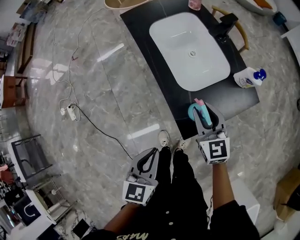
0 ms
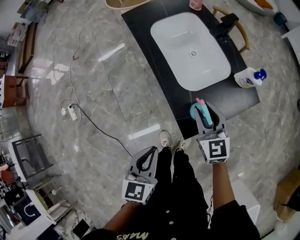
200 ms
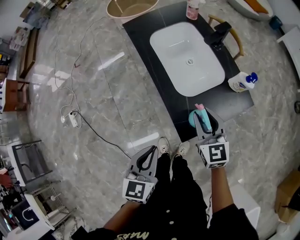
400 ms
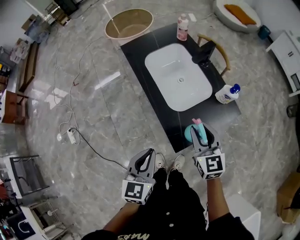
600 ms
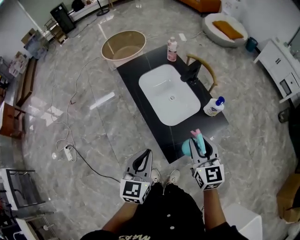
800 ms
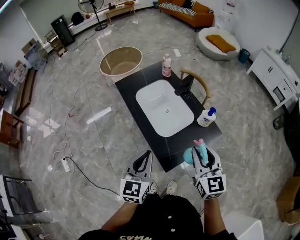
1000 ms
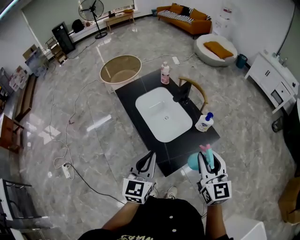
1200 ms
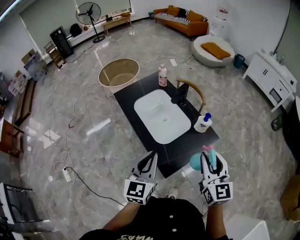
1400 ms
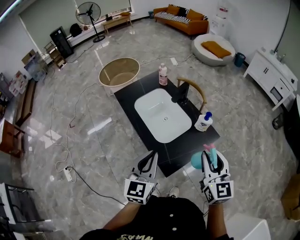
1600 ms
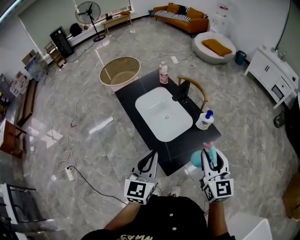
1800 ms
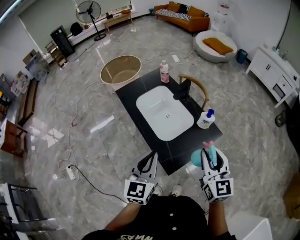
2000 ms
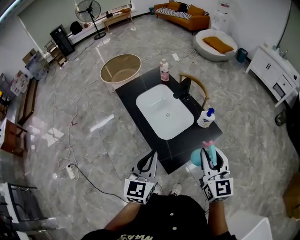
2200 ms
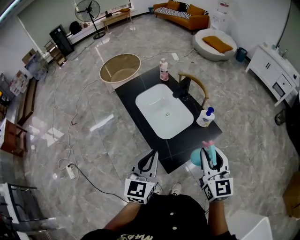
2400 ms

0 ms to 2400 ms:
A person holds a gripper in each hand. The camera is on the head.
0 ms to 1200 ms: The right gripper goes roughly 25 cm upward and to the right, and rotates some 20 degrees; the left gripper travels upward and forward by roughly 20 cm, and turns by approximately 30 degrees.
1200 ms to 2400 ms: There are only small adjustments of the grippers.

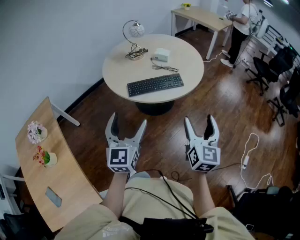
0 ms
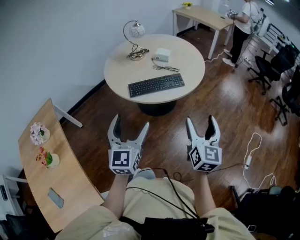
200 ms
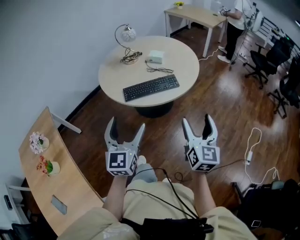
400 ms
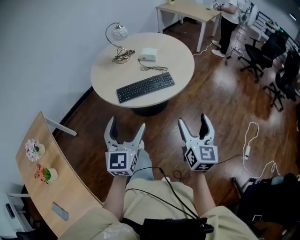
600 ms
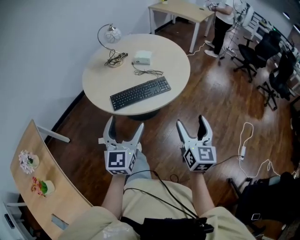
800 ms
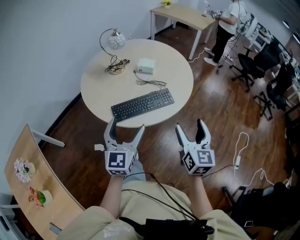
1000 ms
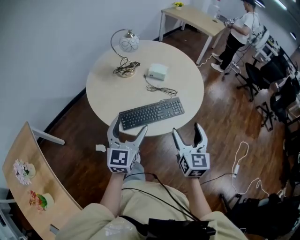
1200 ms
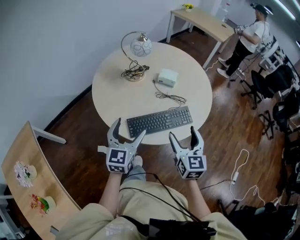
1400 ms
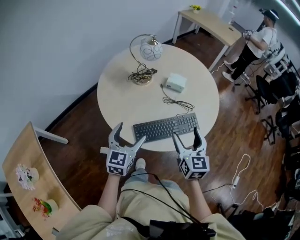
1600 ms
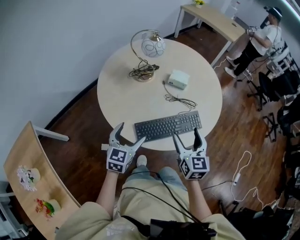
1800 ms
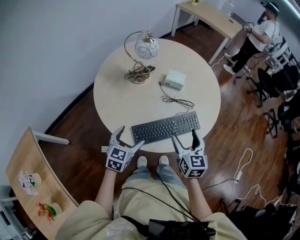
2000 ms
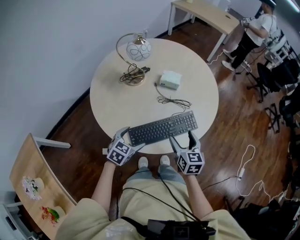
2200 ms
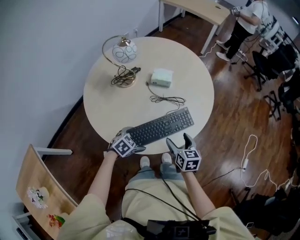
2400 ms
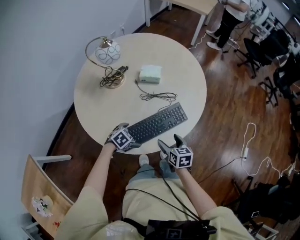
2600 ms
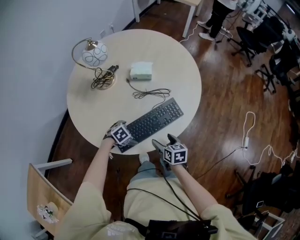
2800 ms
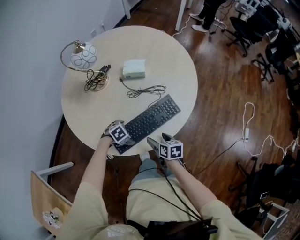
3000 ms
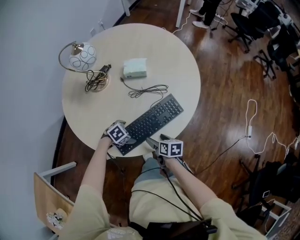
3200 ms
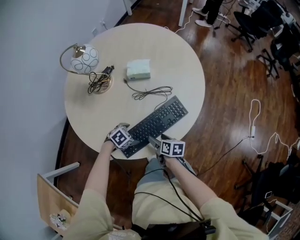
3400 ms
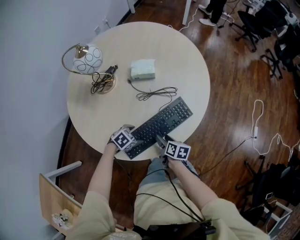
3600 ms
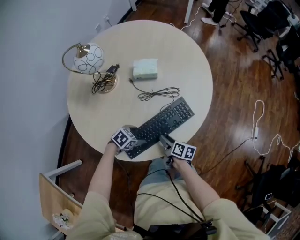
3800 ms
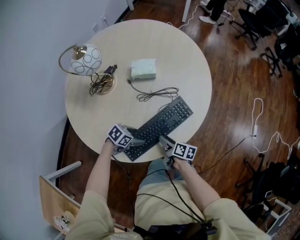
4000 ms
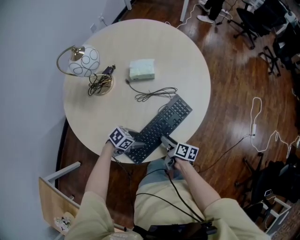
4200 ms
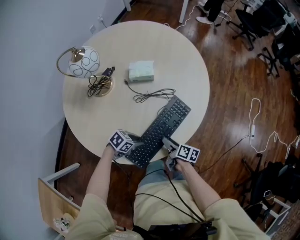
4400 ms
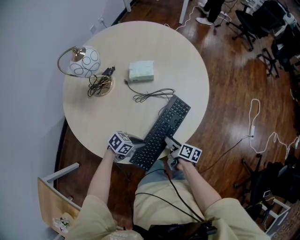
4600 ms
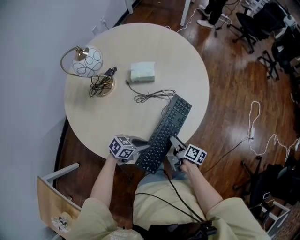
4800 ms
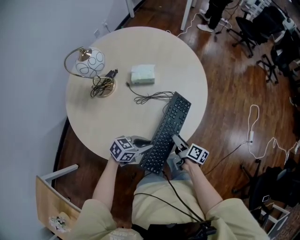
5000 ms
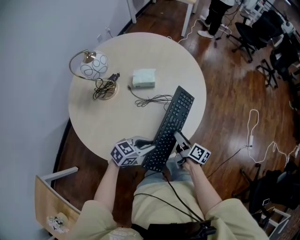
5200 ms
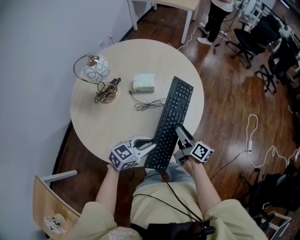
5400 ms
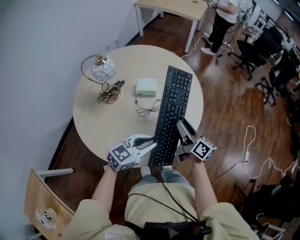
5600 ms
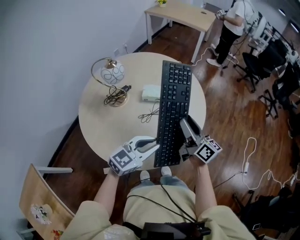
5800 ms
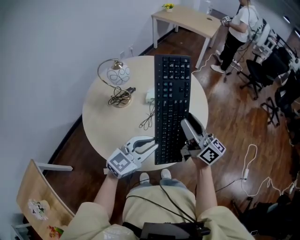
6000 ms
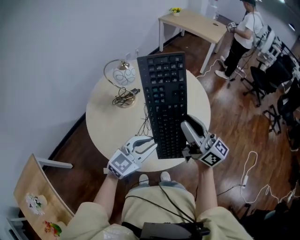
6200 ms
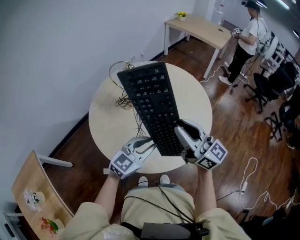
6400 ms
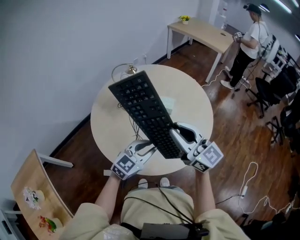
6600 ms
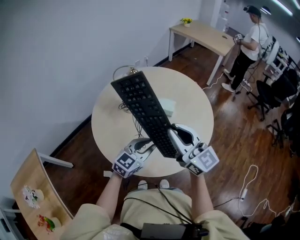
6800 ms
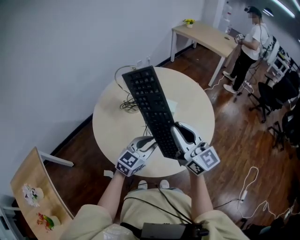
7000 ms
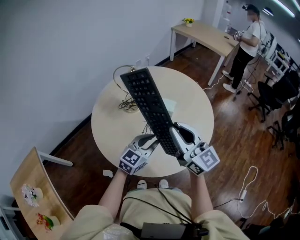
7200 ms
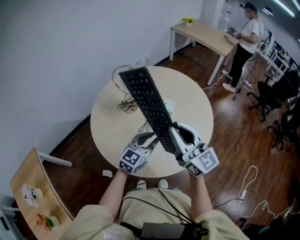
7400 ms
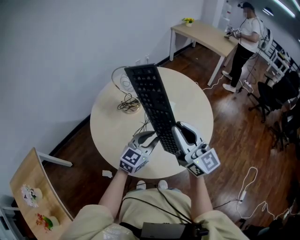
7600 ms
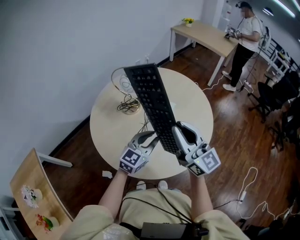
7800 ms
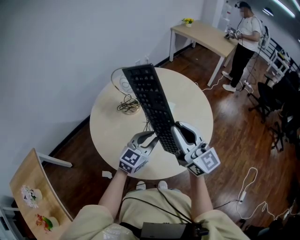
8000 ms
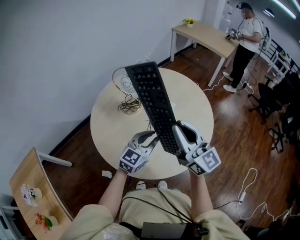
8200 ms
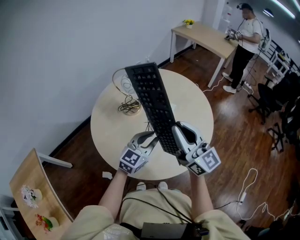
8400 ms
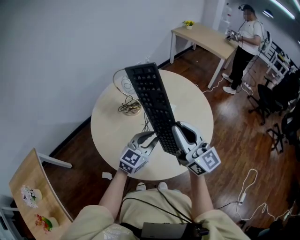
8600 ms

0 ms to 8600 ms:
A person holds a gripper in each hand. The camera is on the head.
0 ms to 1400 ms: The right gripper moves forward and to the left, roughly 35 cm, while the left gripper moves forward, approximately 35 cm.
1400 ms to 2800 ms: Both grippers move downward, some 30 cm. The left gripper points its fingers roughly 60 degrees further downward, while the right gripper changes its angle by roughly 40 degrees.
2800 ms to 4400 ms: The left gripper swivels roughly 30 degrees, and closes its fingers. The right gripper moves downward, some 5 cm, turns by about 40 degrees, and closes up.
4400 ms to 5800 ms: The two grippers go some 30 cm upward. The left gripper tips its fingers upward by roughly 30 degrees, while the right gripper points its fingers about 40 degrees further upward.
5800 ms to 7200 ms: The right gripper travels upward and to the left by about 15 cm, and swivels approximately 40 degrees. Meanwhile the left gripper heads forward, covering approximately 5 cm, and turns by roughly 30 degrees.
7200 ms to 8600 ms: The grippers make only small movements.

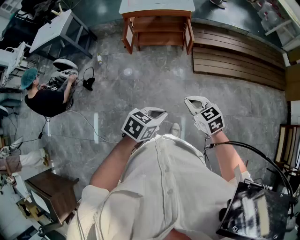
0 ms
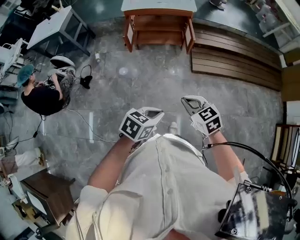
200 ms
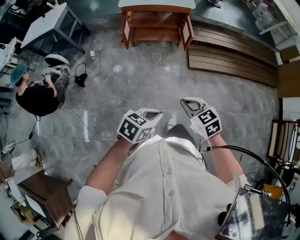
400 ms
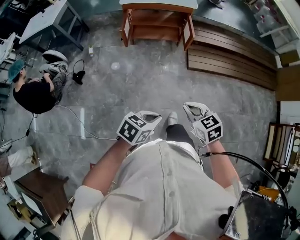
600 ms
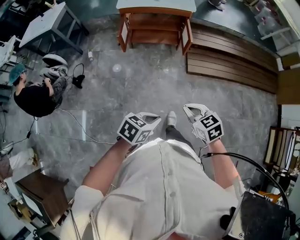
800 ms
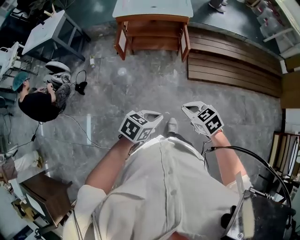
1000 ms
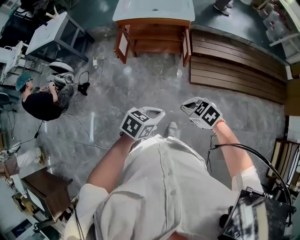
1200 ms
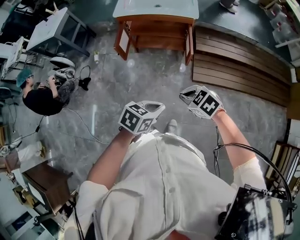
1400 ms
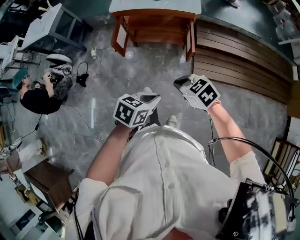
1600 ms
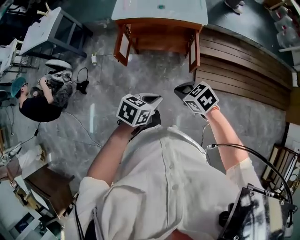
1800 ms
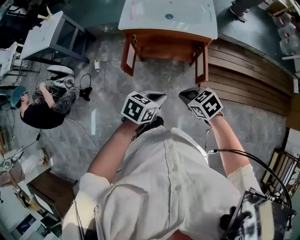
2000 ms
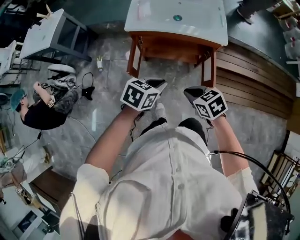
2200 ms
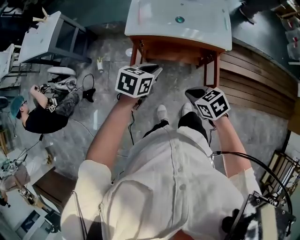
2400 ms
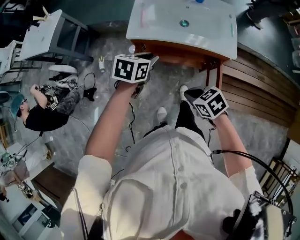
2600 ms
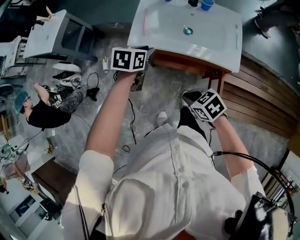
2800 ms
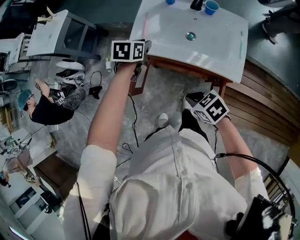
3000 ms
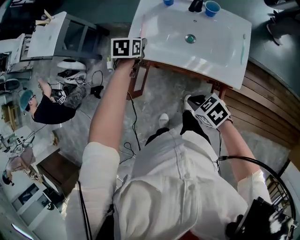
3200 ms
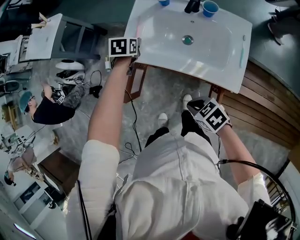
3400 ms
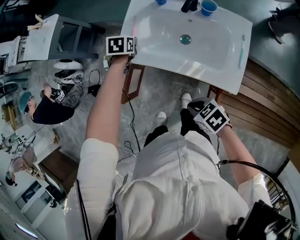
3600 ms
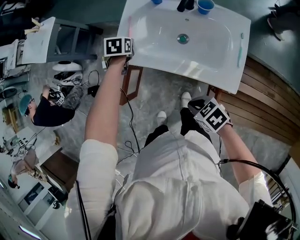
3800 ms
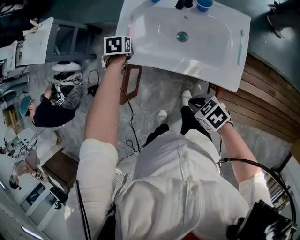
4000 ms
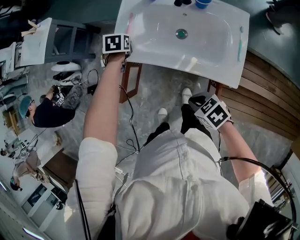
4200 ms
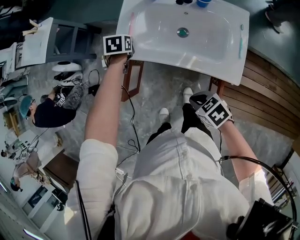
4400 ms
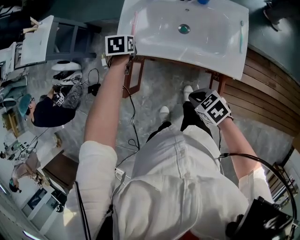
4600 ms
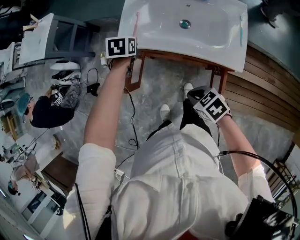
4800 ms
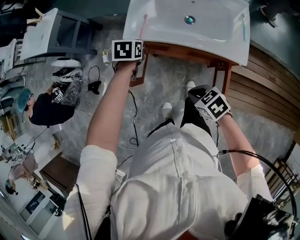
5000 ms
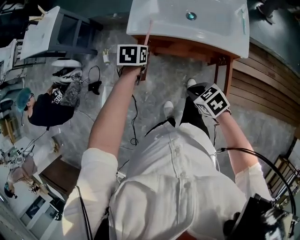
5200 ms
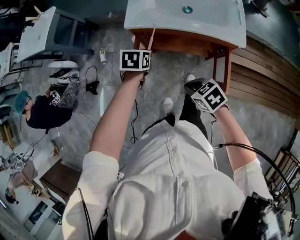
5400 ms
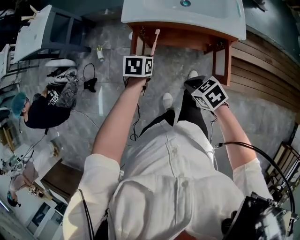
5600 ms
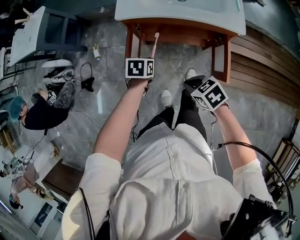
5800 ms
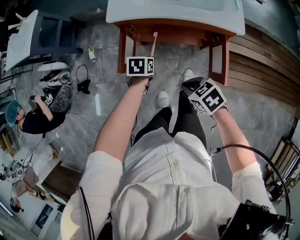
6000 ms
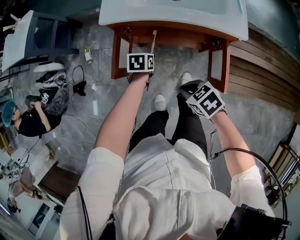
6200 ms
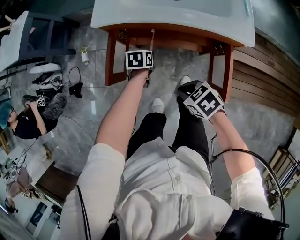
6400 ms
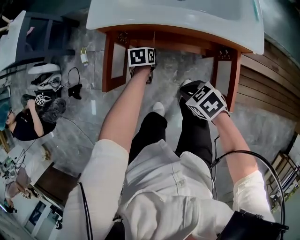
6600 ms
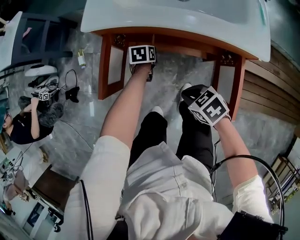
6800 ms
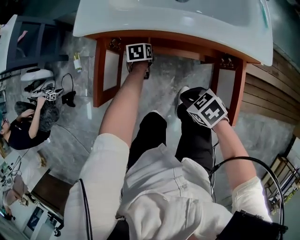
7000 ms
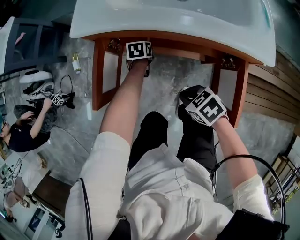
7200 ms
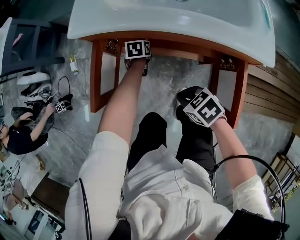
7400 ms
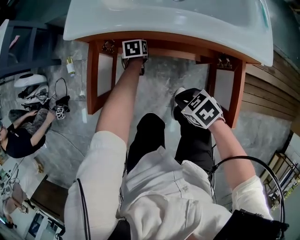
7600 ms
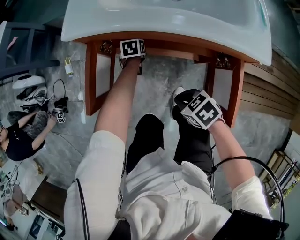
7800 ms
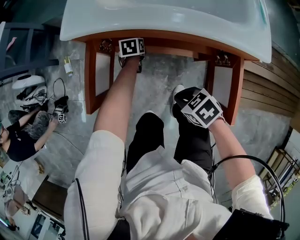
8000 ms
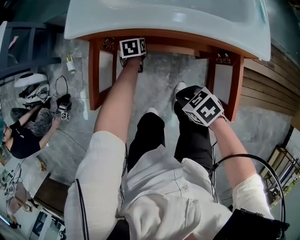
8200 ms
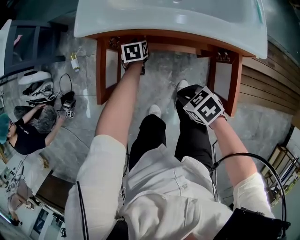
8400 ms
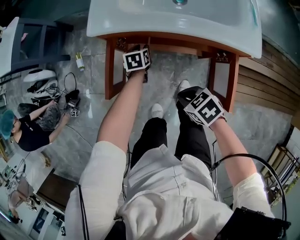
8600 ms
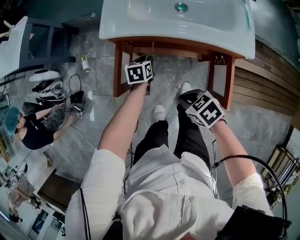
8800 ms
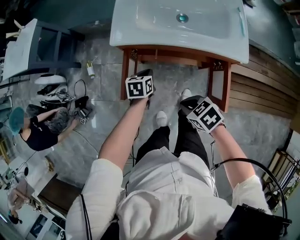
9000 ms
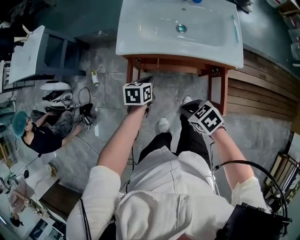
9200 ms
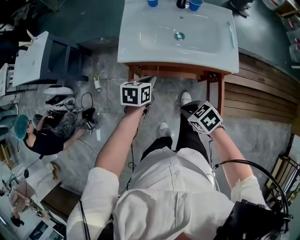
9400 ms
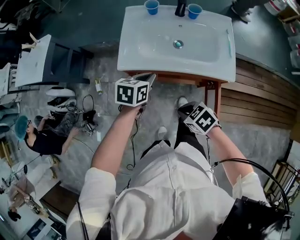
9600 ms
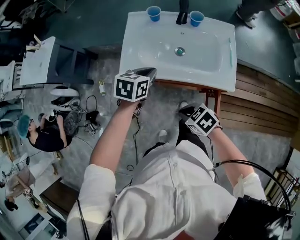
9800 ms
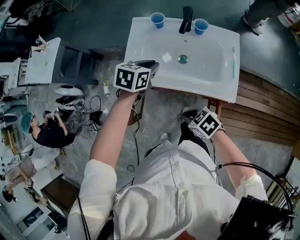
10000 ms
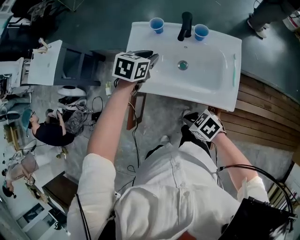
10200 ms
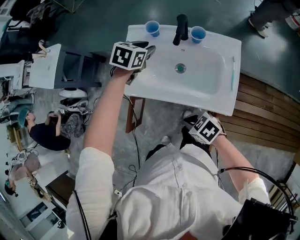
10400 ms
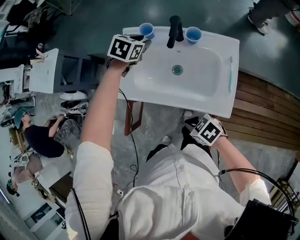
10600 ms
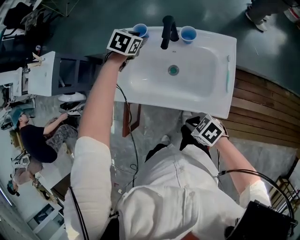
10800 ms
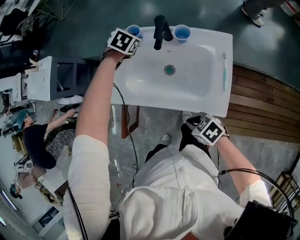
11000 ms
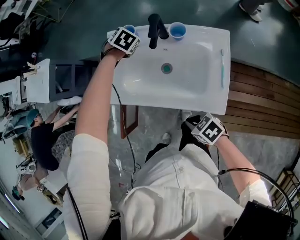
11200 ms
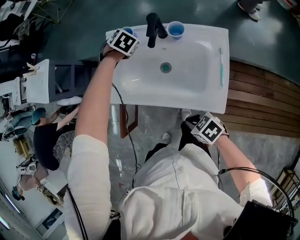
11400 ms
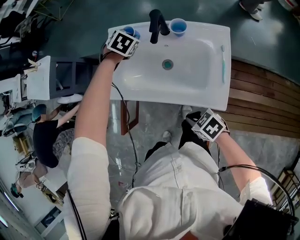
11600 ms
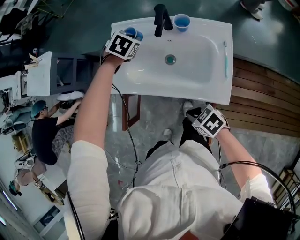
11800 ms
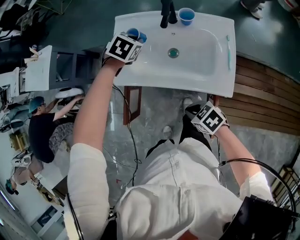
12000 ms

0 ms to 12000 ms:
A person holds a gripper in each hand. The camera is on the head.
0 ms to 1600 ms: The left gripper moves roughly 25 cm; the right gripper moves roughly 25 cm, and rotates some 20 degrees.
1600 ms to 3000 ms: The right gripper changes place by some 40 cm; the left gripper shifts by roughly 70 cm, rotates some 30 degrees, and opens up.
3000 ms to 4400 ms: The right gripper travels to the right by roughly 5 cm, while the left gripper travels downward and forward by approximately 10 cm.
4400 ms to 6000 ms: The left gripper shifts by approximately 30 cm. The right gripper shifts by roughly 20 cm.
6000 ms to 7600 ms: The right gripper is displaced downward by some 20 cm. The left gripper travels downward and forward by about 30 cm.
7600 ms to 9000 ms: The left gripper is displaced upward, backward and to the left by approximately 25 cm, while the right gripper goes roughly 15 cm upward.
9000 ms to 10400 ms: The left gripper moves roughly 40 cm, rotates some 30 degrees, and opens up. Meanwhile the right gripper ends up roughly 20 cm from where it was.
10400 ms to 12000 ms: The left gripper turns by some 20 degrees, and closes up.
